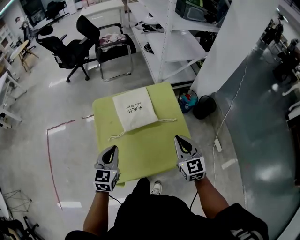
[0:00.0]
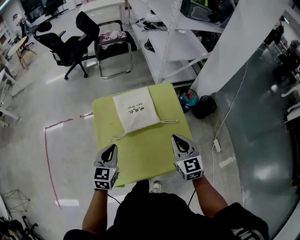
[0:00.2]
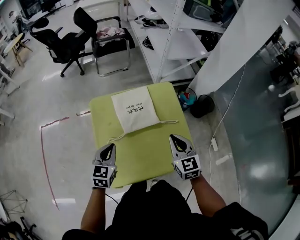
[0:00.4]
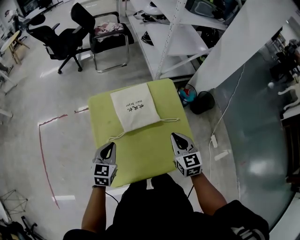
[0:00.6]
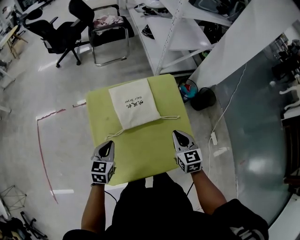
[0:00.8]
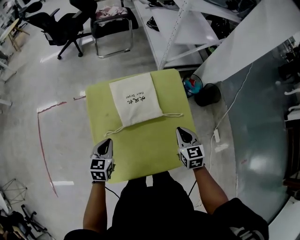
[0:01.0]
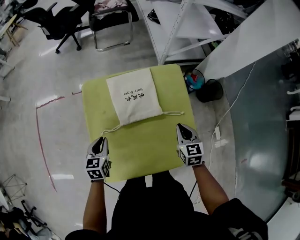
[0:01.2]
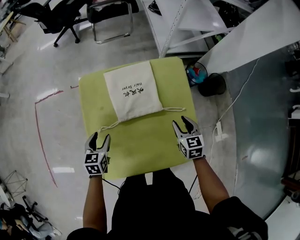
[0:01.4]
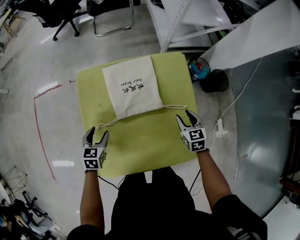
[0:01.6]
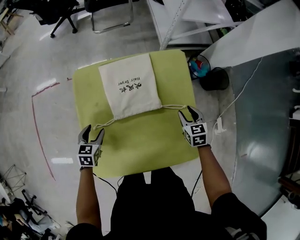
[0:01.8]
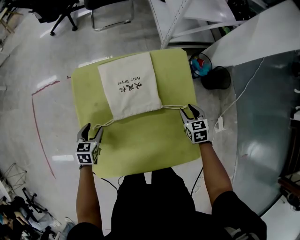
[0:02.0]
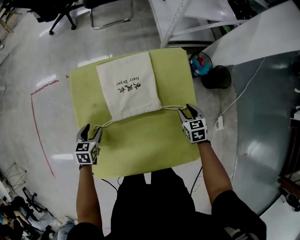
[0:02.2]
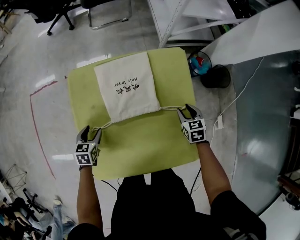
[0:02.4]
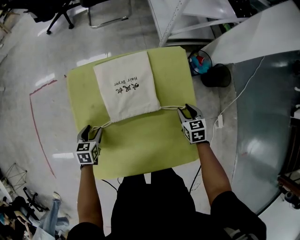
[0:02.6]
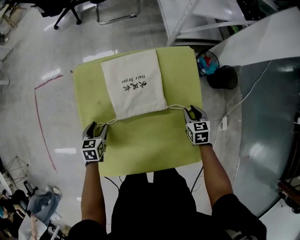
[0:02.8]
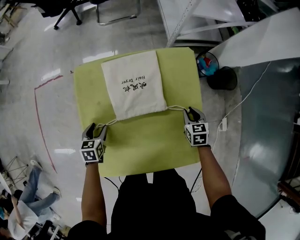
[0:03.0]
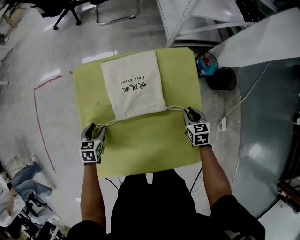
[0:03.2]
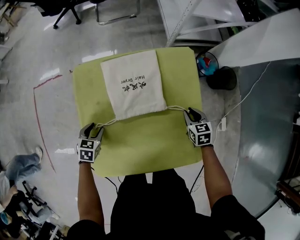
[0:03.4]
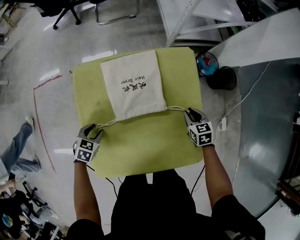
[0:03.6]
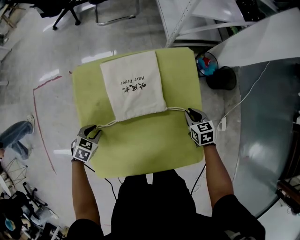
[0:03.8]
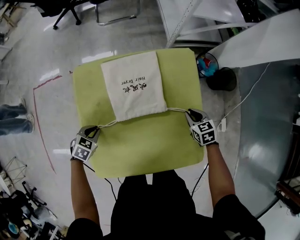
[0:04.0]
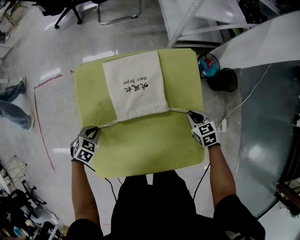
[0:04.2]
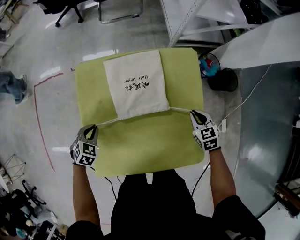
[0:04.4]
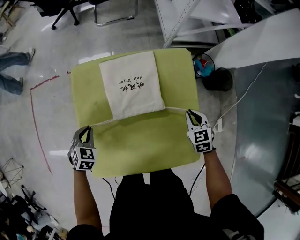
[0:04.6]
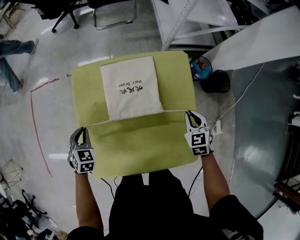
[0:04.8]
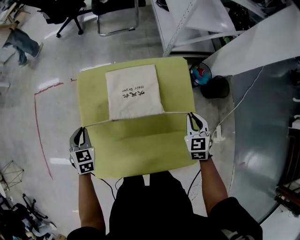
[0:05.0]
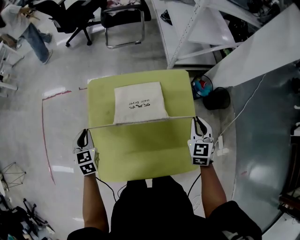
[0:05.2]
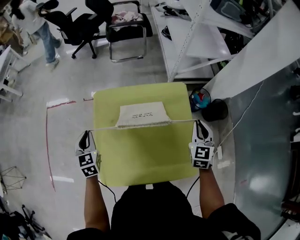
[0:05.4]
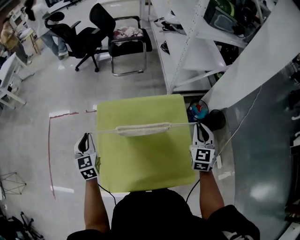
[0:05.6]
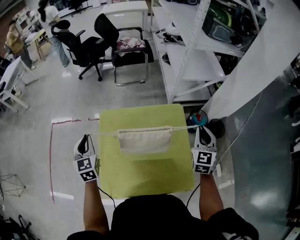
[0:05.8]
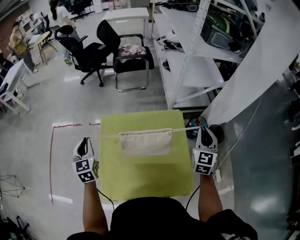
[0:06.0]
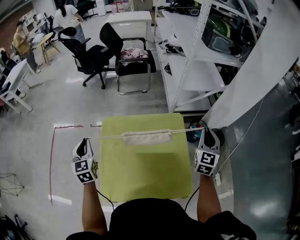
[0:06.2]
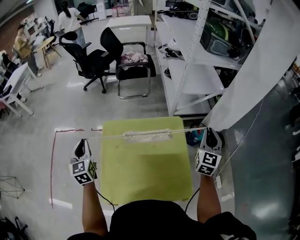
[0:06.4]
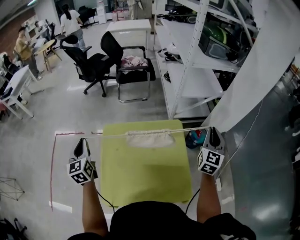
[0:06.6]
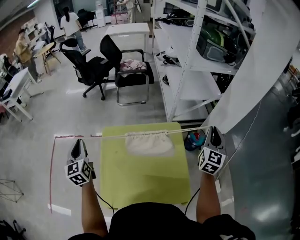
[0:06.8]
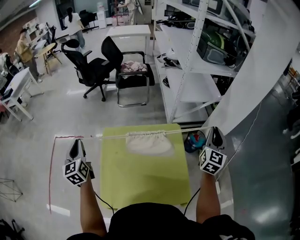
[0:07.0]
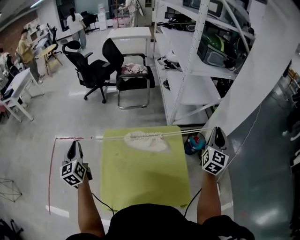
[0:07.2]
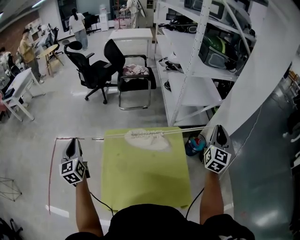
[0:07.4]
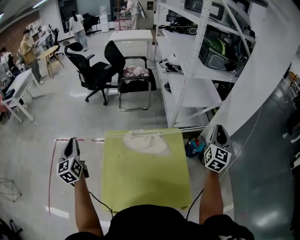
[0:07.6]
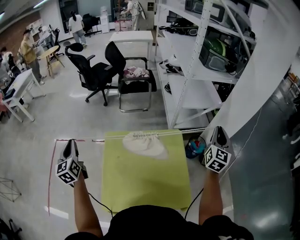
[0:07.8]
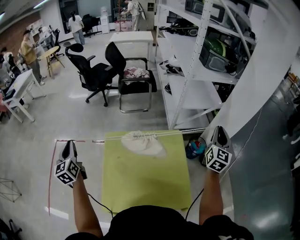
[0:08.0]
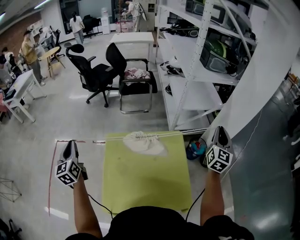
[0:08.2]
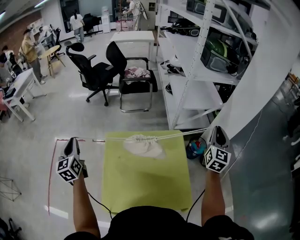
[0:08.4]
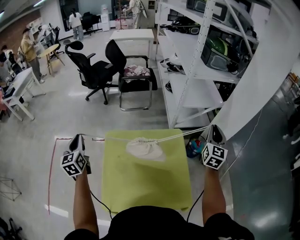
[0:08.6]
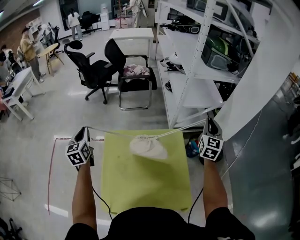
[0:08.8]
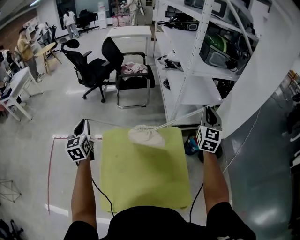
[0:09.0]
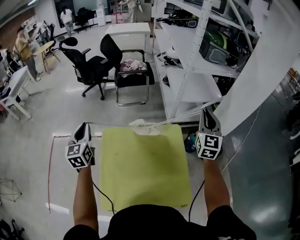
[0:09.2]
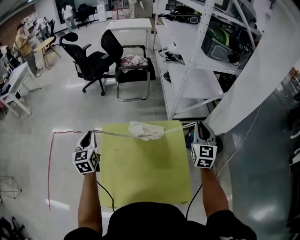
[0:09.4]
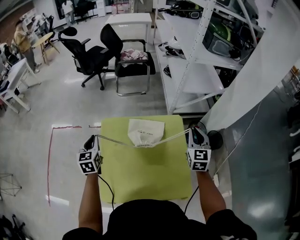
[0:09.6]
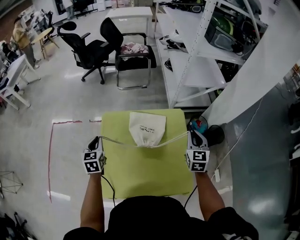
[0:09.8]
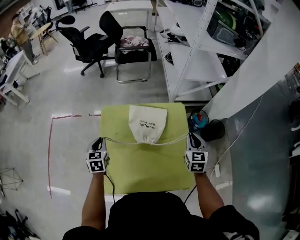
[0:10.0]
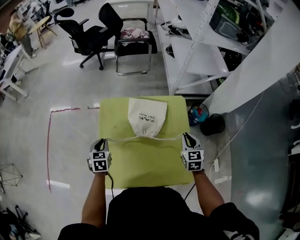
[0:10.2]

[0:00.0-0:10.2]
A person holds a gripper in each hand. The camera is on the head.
0:00.0 to 0:01.4: Both grippers move downward and forward, some 20 cm. The left gripper changes its angle by approximately 30 degrees, and opens; the right gripper changes its angle by roughly 20 degrees, and opens its fingers.
0:01.4 to 0:03.0: The right gripper travels downward and forward by some 10 cm. The left gripper travels downward by approximately 10 cm.
0:03.0 to 0:04.4: The left gripper rotates some 40 degrees, and closes.
0:04.4 to 0:05.8: Both grippers move upward, roughly 30 cm. The left gripper points its fingers some 40 degrees further upward; the right gripper points its fingers roughly 40 degrees further upward.
0:05.8 to 0:07.2: The right gripper heads upward and to the right, covering about 15 cm, and swivels roughly 20 degrees. Meanwhile the left gripper goes about 10 cm upward and to the left, and turns by about 20 degrees.
0:07.2 to 0:08.8: The two grippers go some 10 cm forward.
0:08.8 to 0:10.2: The left gripper moves downward and backward, approximately 25 cm, and changes its angle by some 30 degrees. Meanwhile the right gripper goes some 30 cm downward, backward and to the left, and rotates some 30 degrees.

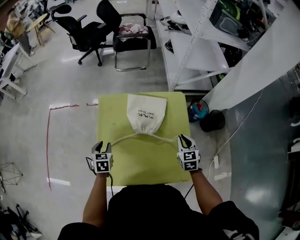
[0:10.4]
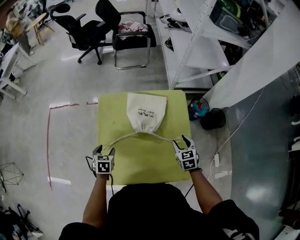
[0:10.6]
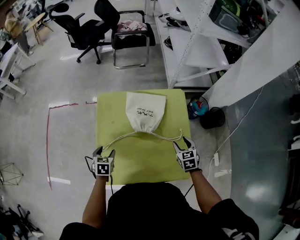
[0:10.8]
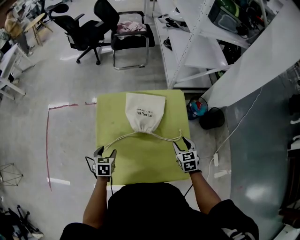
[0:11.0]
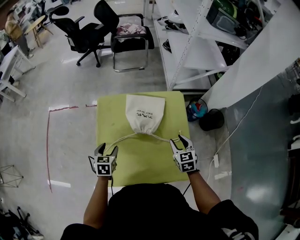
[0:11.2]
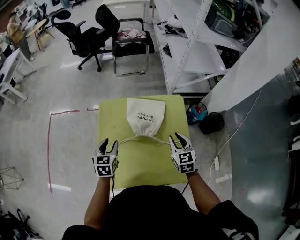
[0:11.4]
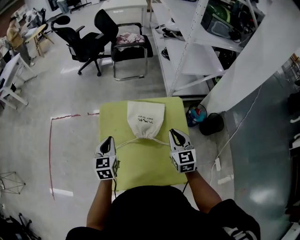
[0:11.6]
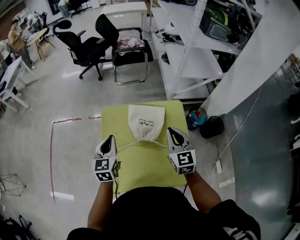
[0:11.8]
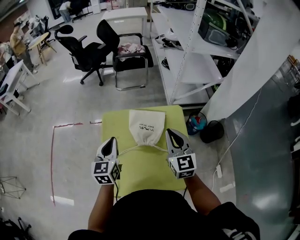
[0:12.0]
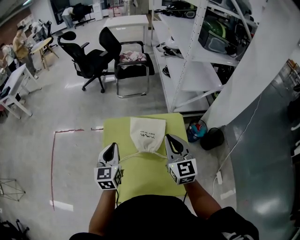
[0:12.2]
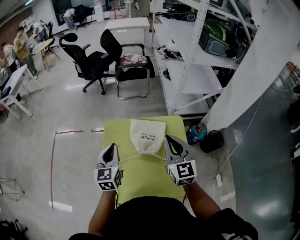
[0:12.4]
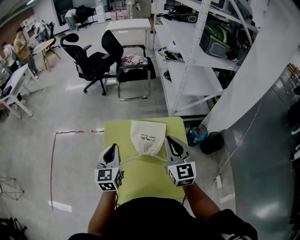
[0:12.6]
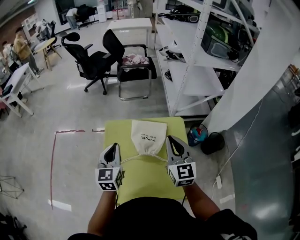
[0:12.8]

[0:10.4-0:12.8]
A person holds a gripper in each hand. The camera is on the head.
0:10.4 to 0:11.6: The right gripper travels upward and to the left by some 15 cm, and opens, then closes once more; the left gripper shifts roughly 15 cm upward, changes its angle by some 20 degrees, and closes.
0:11.6 to 0:12.8: Both grippers move upward, some 10 cm.

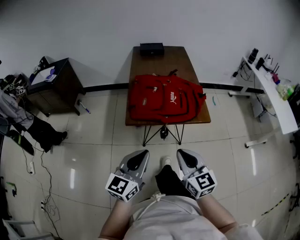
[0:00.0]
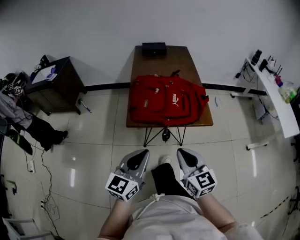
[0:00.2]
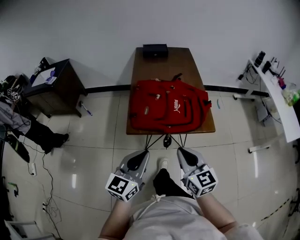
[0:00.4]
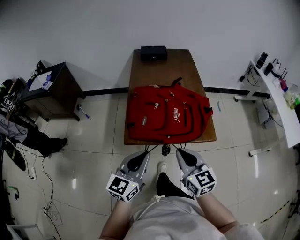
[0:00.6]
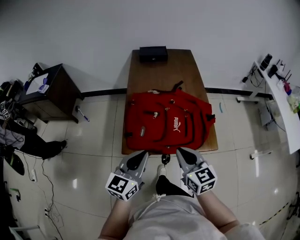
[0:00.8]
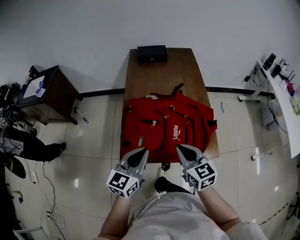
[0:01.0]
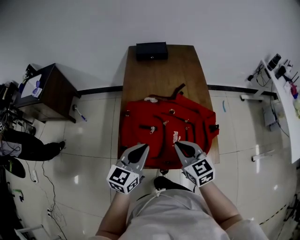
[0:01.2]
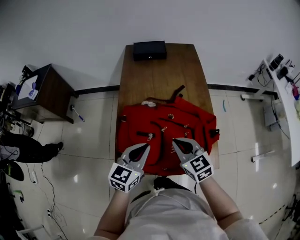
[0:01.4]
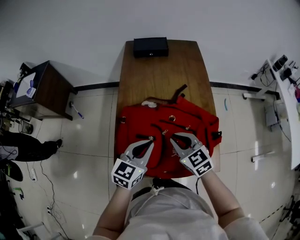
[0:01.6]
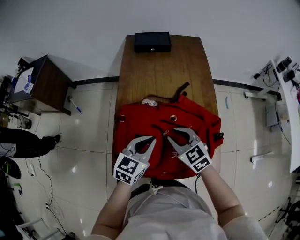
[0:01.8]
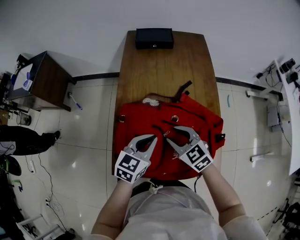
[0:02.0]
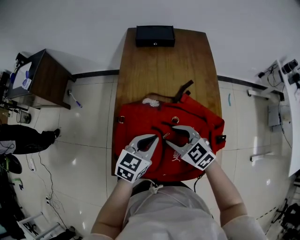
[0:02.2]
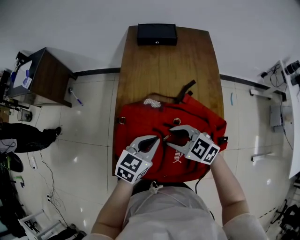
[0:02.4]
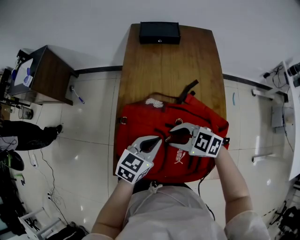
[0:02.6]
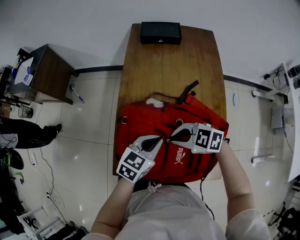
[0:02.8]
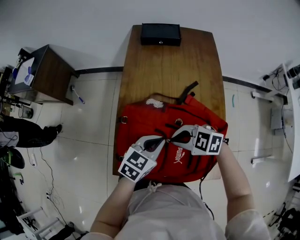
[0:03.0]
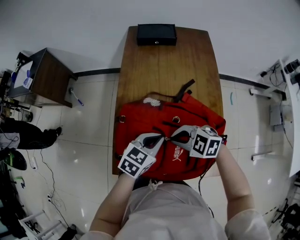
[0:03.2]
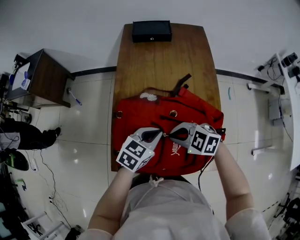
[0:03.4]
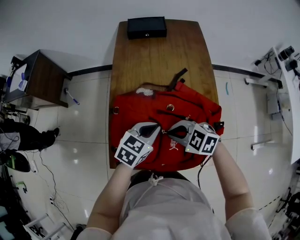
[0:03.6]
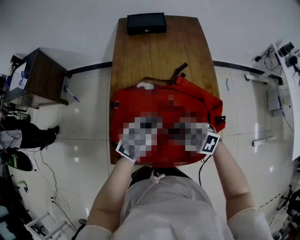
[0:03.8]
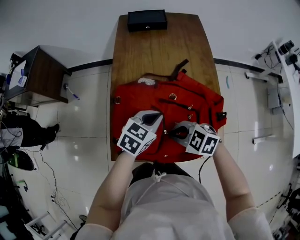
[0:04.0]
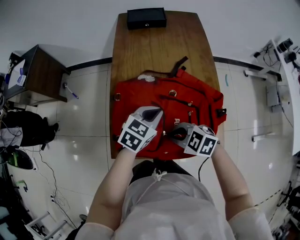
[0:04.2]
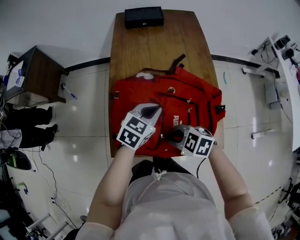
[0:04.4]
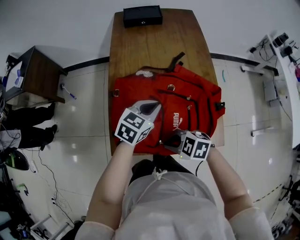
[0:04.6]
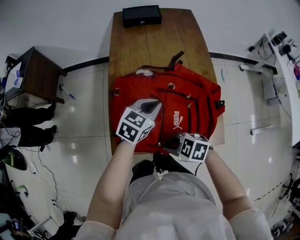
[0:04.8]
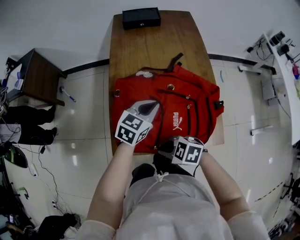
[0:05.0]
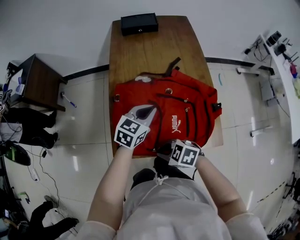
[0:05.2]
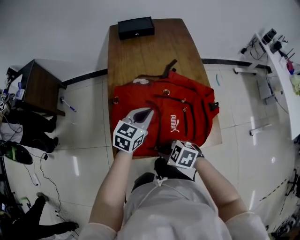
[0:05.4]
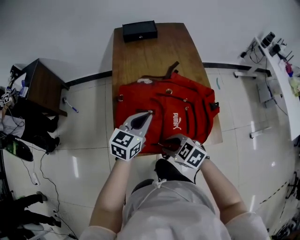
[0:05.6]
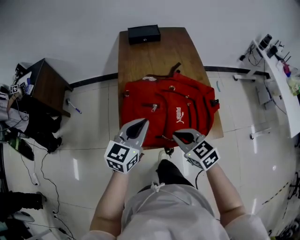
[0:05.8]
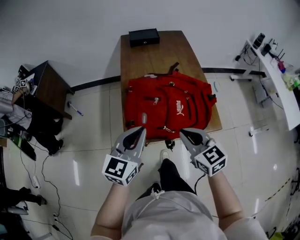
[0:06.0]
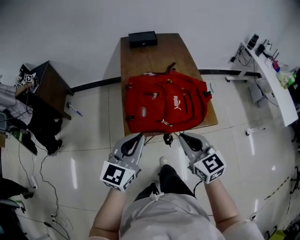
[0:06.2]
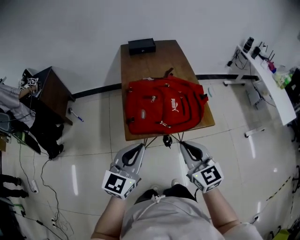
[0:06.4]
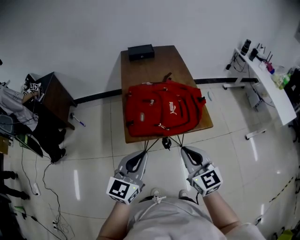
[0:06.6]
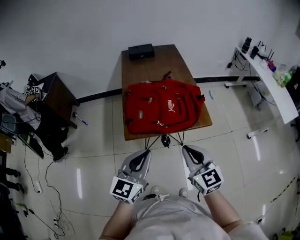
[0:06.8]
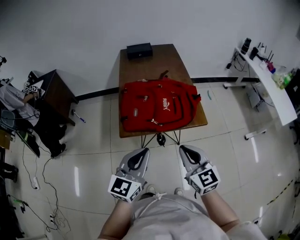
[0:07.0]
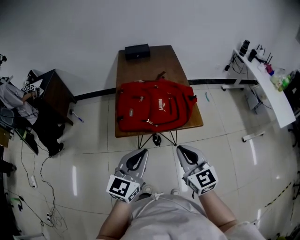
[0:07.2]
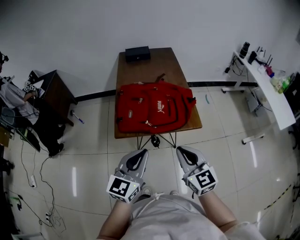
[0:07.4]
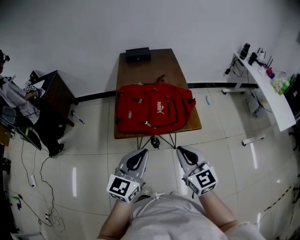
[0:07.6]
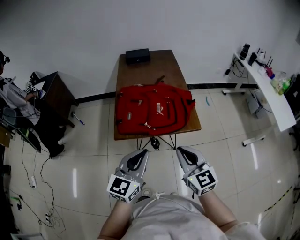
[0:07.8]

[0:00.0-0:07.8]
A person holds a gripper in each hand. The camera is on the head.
0:00.0 to 0:01.6: The two grippers travel together, forward, approximately 40 cm. The right gripper changes its angle by approximately 30 degrees.
0:01.6 to 0:03.2: The left gripper moves downward, about 5 cm, while the right gripper swivels about 50 degrees, and opens, then closes once more.
0:03.2 to 0:04.6: The right gripper moves some 15 cm.
0:04.6 to 0:06.2: The left gripper changes place by approximately 35 cm, and turns by roughly 30 degrees. The right gripper is displaced upward by about 20 cm, rotates approximately 60 degrees, and opens and closes again.
0:06.2 to 0:07.8: Both grippers move to the right and backward, some 15 cm.

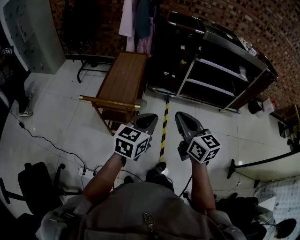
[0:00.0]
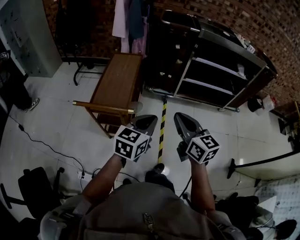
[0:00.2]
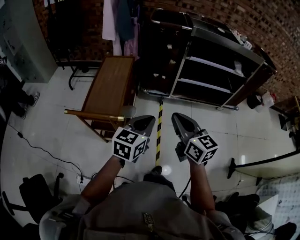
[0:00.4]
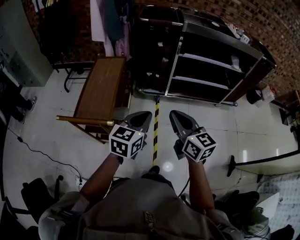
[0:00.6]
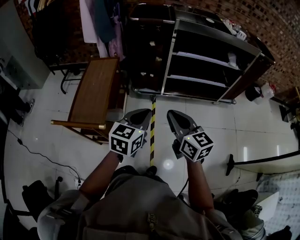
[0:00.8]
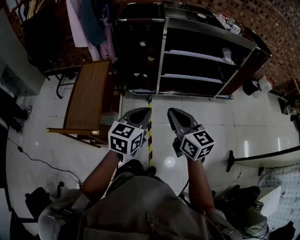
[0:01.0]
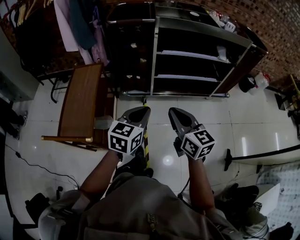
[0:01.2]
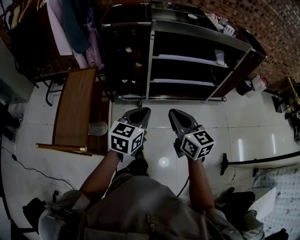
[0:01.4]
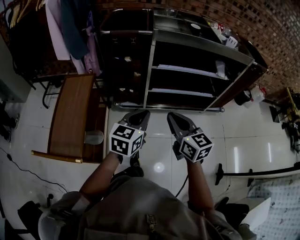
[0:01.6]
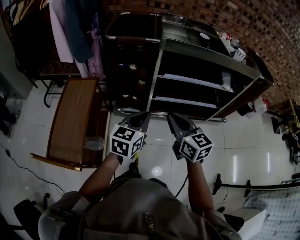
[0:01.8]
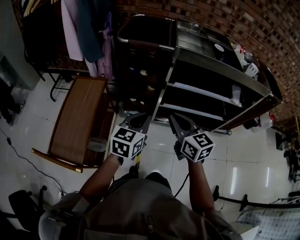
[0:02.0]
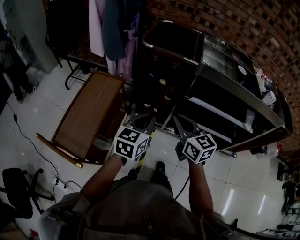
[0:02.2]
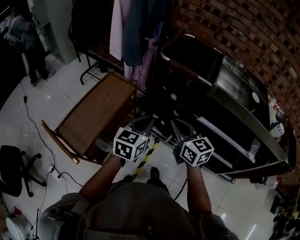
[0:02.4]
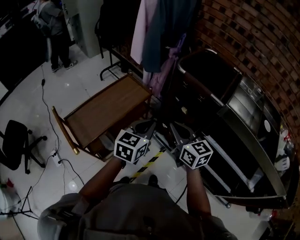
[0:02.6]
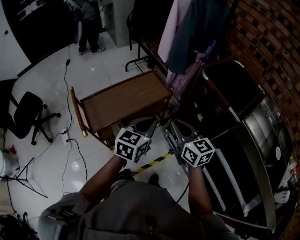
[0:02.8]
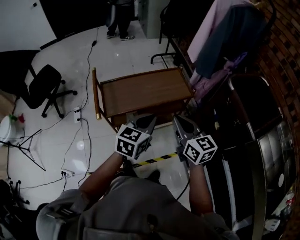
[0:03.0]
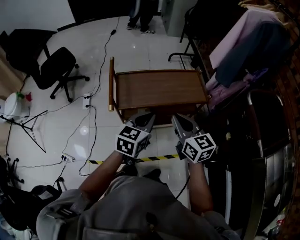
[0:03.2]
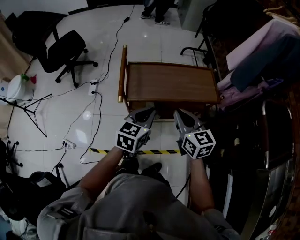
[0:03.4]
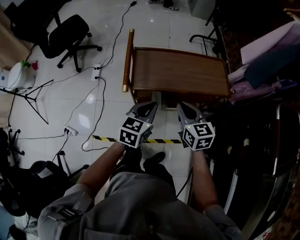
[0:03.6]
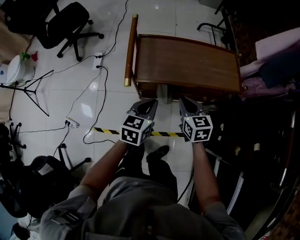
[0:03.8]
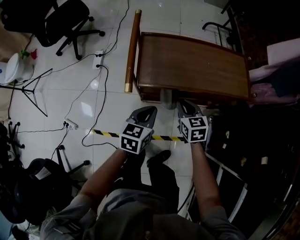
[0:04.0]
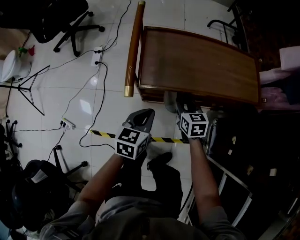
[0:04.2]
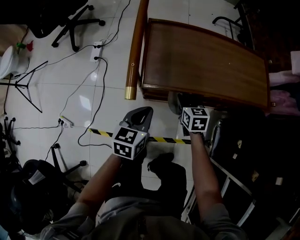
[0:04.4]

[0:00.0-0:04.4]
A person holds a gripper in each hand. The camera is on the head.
0:00.0 to 0:01.4: The right gripper travels to the right and forward by about 35 cm, while the left gripper travels forward and to the right by approximately 40 cm.
0:01.4 to 0:03.0: The right gripper shifts by roughly 35 cm, and turns by some 80 degrees; the left gripper shifts by about 25 cm, and changes its angle by about 70 degrees.
0:03.0 to 0:04.4: The left gripper goes some 40 cm downward and to the left, and swivels approximately 30 degrees, while the right gripper goes some 50 cm downward and forward, tips its fingers downward by roughly 30 degrees, and opens its fingers.
